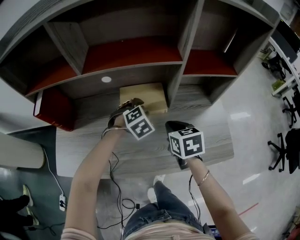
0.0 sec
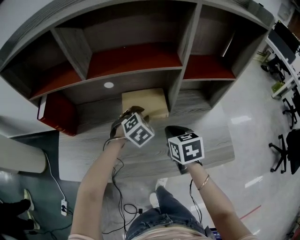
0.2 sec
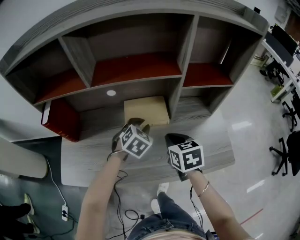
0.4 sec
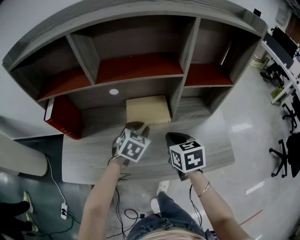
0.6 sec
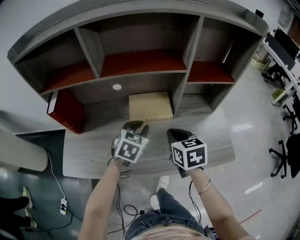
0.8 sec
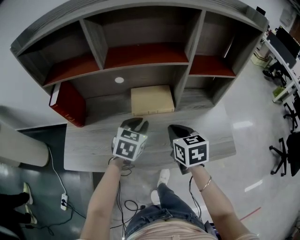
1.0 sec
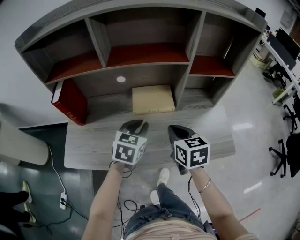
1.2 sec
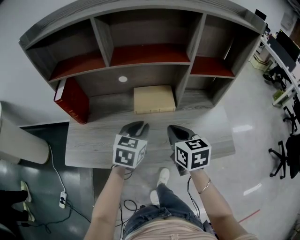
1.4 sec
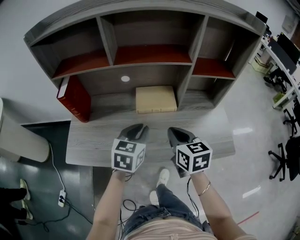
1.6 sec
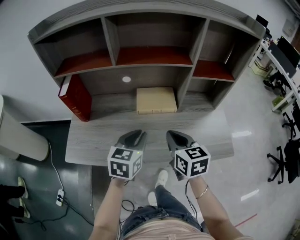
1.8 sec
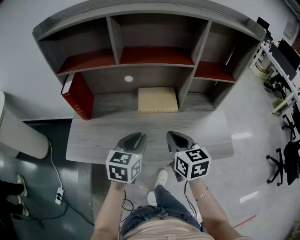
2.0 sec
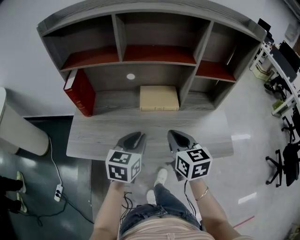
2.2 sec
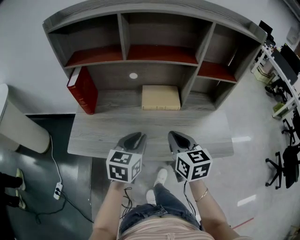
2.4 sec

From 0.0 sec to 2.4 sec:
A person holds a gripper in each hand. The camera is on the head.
From 0.0 sec to 1.2 sec: The left gripper is displaced backward, upward and to the left by some 15 cm, twists some 40 degrees counterclockwise, seen from behind, and closes, while the right gripper is displaced backward and upward by some 10 cm.
From 1.2 sec to 2.4 sec: Both grippers travel together backward, approximately 10 cm.

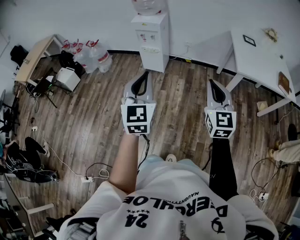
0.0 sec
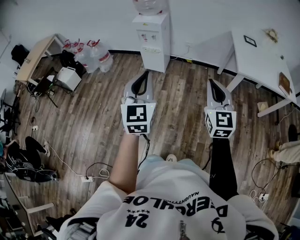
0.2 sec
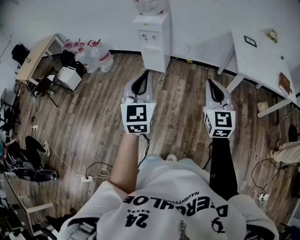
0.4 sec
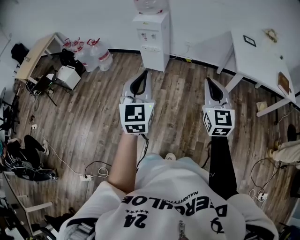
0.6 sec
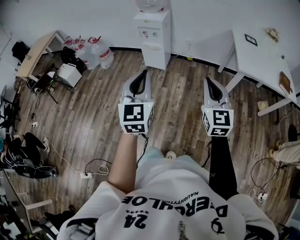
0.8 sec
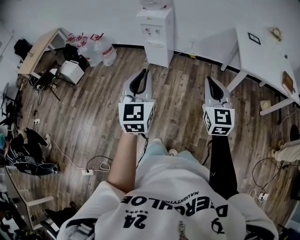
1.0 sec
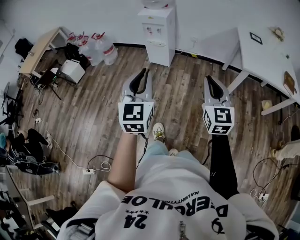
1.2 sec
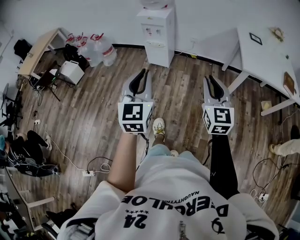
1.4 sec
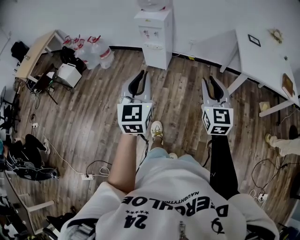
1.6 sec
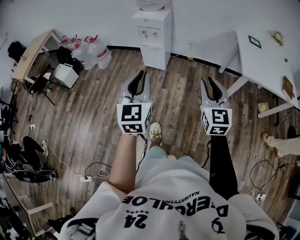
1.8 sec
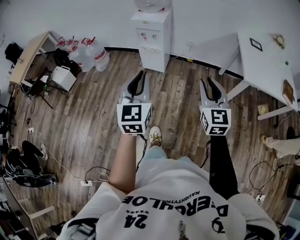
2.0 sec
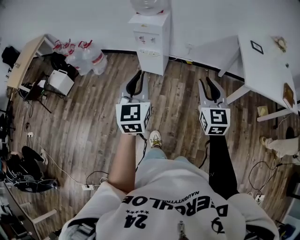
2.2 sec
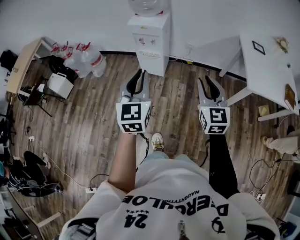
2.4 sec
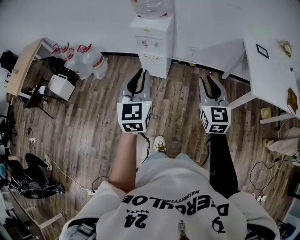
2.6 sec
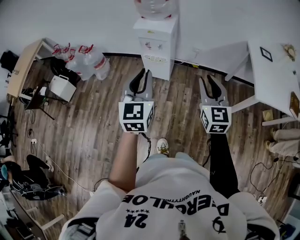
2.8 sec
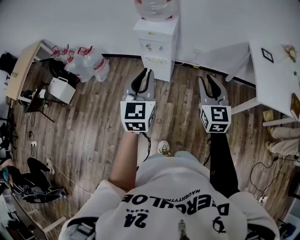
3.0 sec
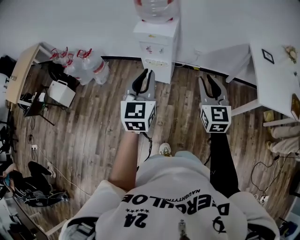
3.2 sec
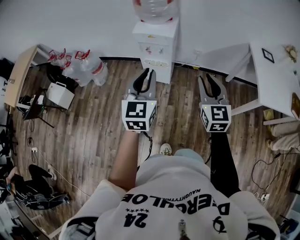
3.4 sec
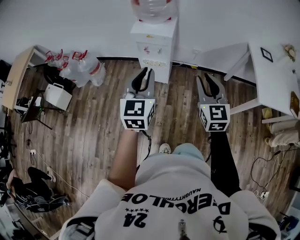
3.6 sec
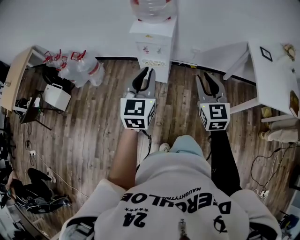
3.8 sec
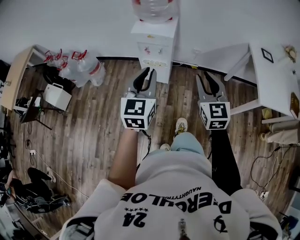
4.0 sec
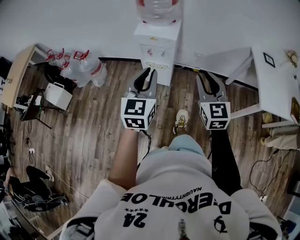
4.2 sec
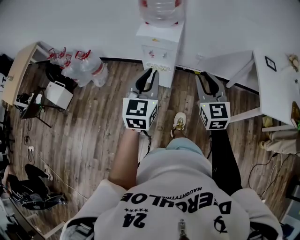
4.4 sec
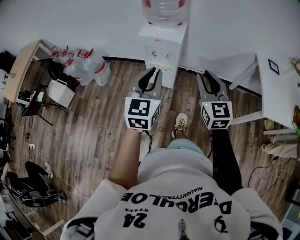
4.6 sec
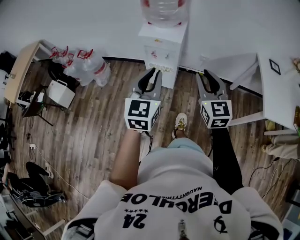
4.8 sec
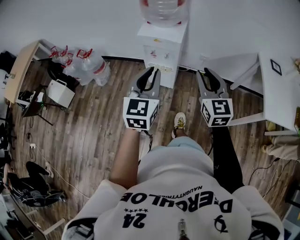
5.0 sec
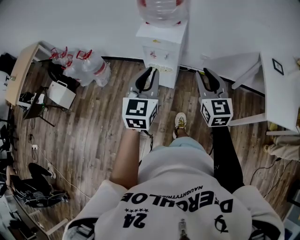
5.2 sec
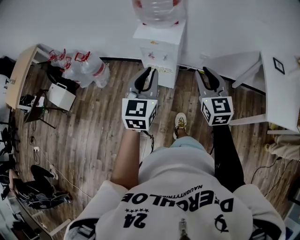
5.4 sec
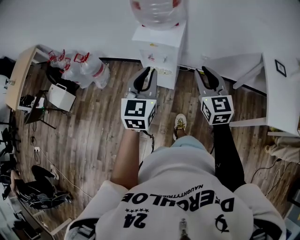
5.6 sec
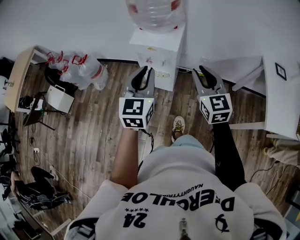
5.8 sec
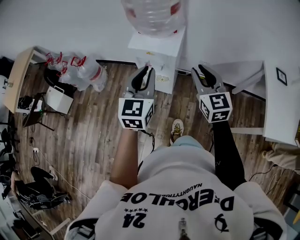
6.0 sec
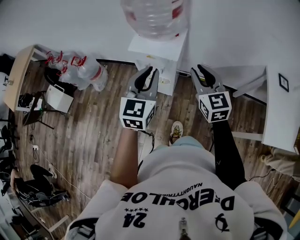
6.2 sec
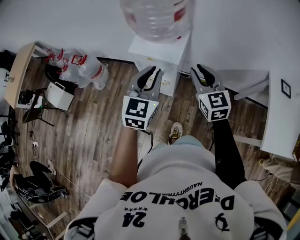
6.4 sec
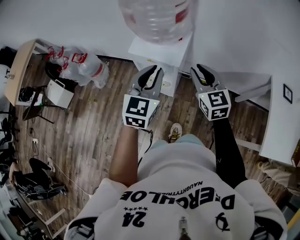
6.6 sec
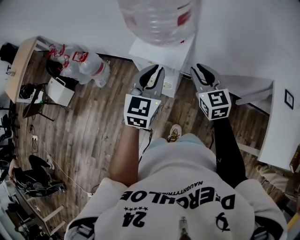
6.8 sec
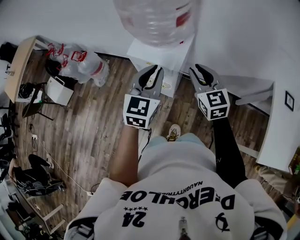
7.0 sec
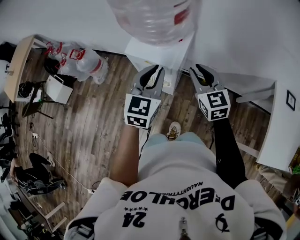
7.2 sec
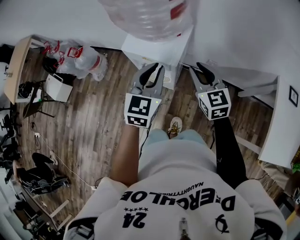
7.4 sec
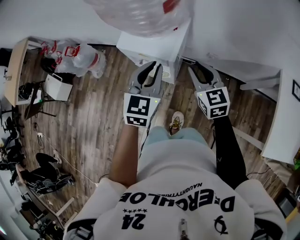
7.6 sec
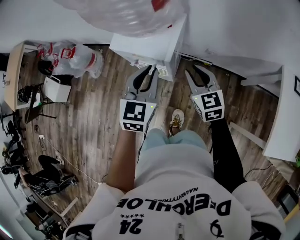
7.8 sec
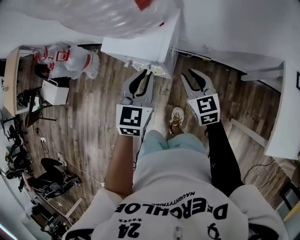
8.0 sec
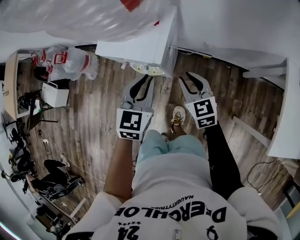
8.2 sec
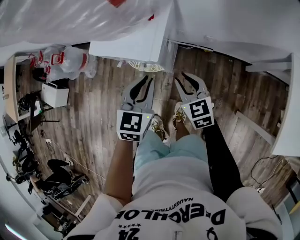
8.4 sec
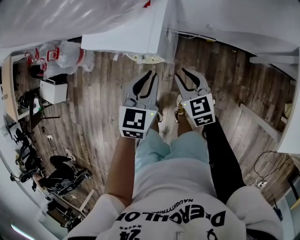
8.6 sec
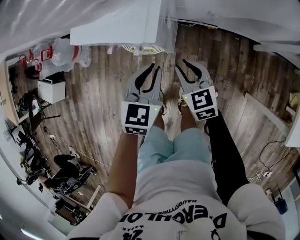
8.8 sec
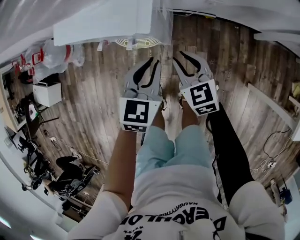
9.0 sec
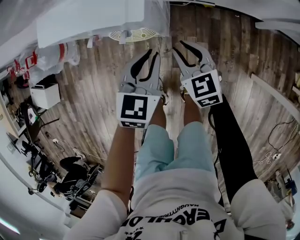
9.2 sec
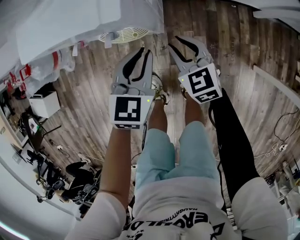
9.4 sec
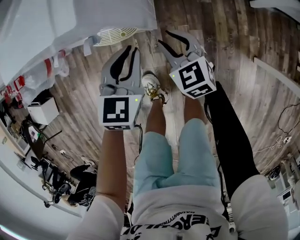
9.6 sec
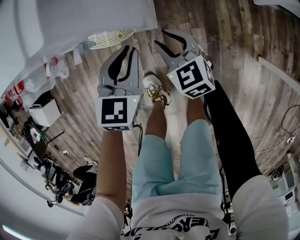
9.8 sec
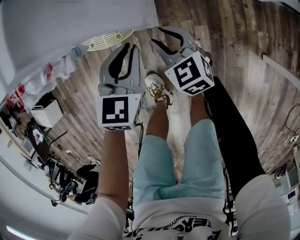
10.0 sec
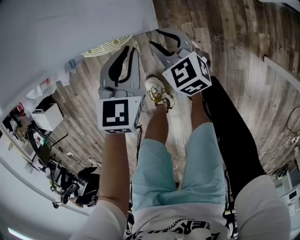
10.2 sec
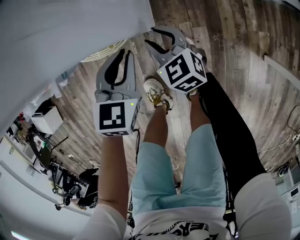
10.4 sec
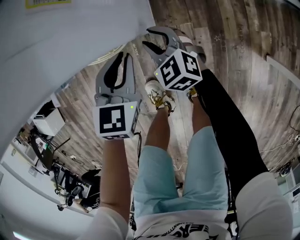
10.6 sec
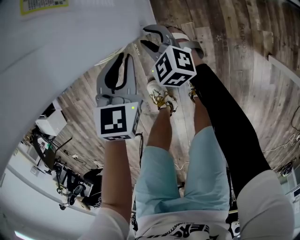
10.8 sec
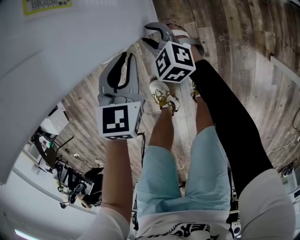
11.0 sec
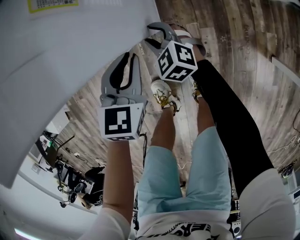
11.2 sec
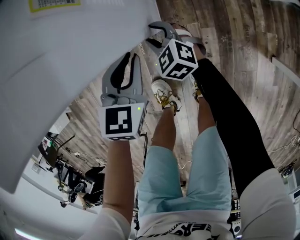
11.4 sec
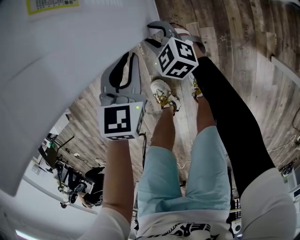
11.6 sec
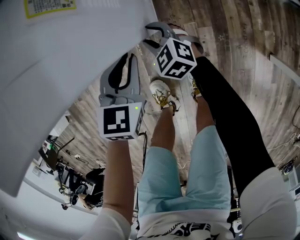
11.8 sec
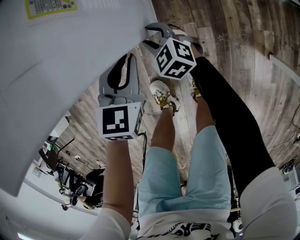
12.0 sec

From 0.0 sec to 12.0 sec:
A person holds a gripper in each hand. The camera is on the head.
From 0.0 sec to 1.6 sec: The right gripper moves about 5 cm.
From 1.6 sec to 3.0 sec: Both grippers move forward, about 30 cm.
From 3.0 sec to 4.4 sec: The left gripper heads forward, covering approximately 10 cm. The right gripper heads forward and to the left, covering about 10 cm.
From 4.4 sec to 6.0 sec: The two grippers go approximately 20 cm forward.
From 6.0 sec to 7.6 sec: The left gripper heads forward, downward and to the right, covering roughly 15 cm. Meanwhile the right gripper goes about 20 cm forward and downward.
From 7.6 sec to 9.0 sec: Both grippers travel together downward, some 25 cm. The left gripper turns by some 20 degrees.
From 9.0 sec to 10.4 sec: Both grippers move downward, approximately 25 cm.
From 10.4 sec to 12.0 sec: The right gripper heads downward, covering approximately 5 cm.

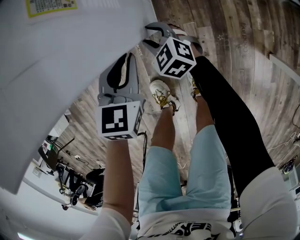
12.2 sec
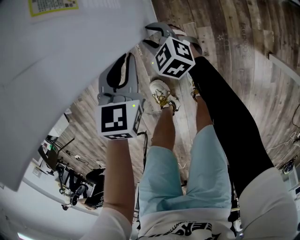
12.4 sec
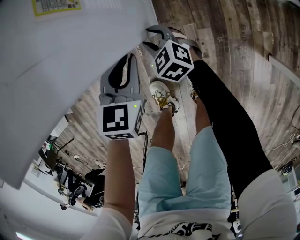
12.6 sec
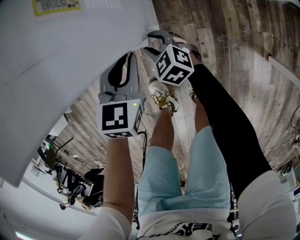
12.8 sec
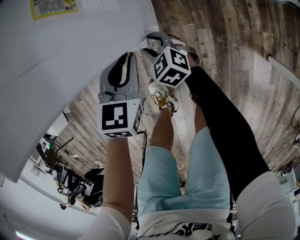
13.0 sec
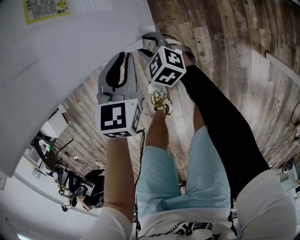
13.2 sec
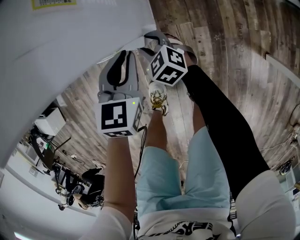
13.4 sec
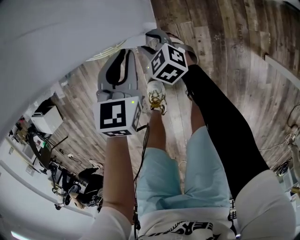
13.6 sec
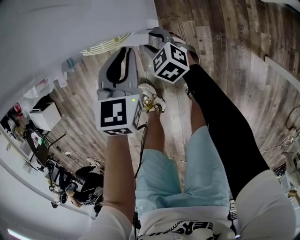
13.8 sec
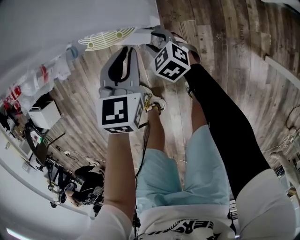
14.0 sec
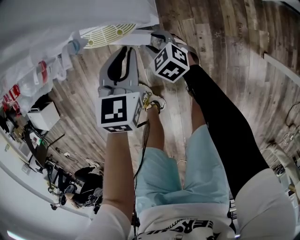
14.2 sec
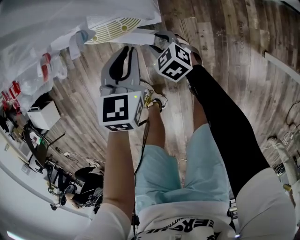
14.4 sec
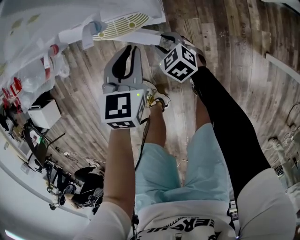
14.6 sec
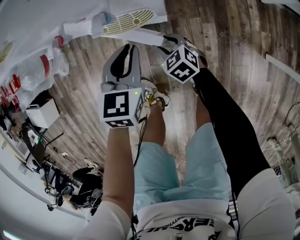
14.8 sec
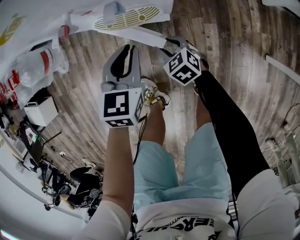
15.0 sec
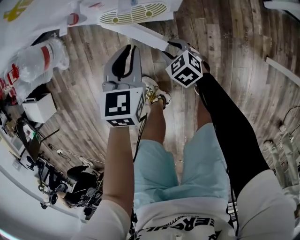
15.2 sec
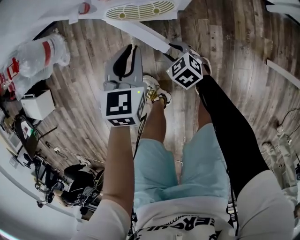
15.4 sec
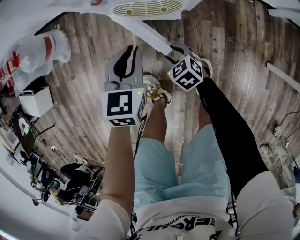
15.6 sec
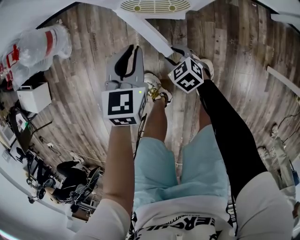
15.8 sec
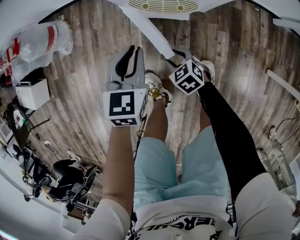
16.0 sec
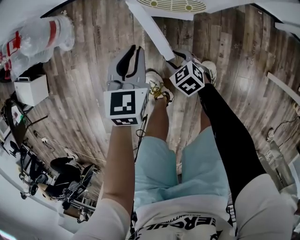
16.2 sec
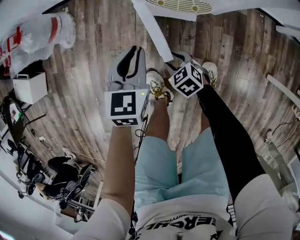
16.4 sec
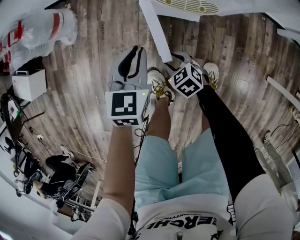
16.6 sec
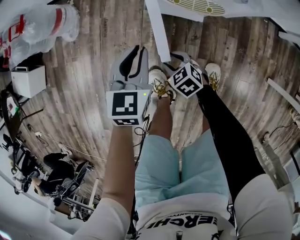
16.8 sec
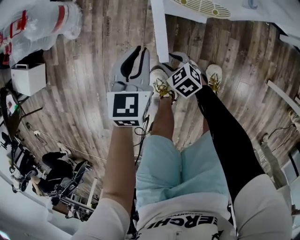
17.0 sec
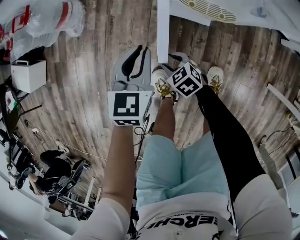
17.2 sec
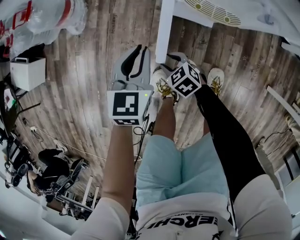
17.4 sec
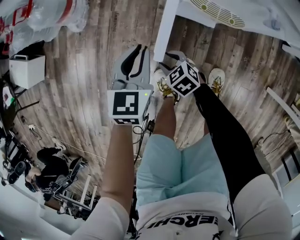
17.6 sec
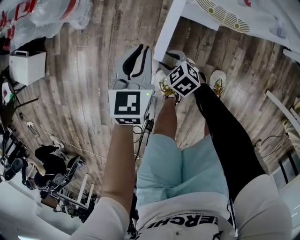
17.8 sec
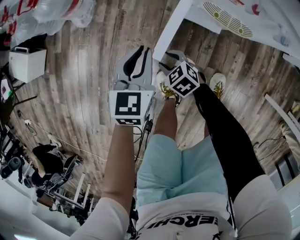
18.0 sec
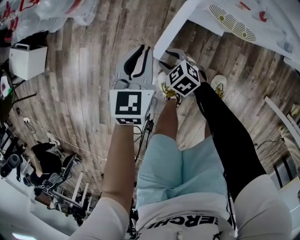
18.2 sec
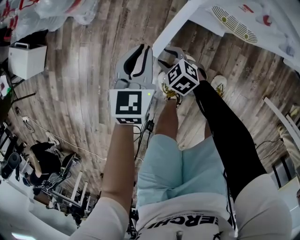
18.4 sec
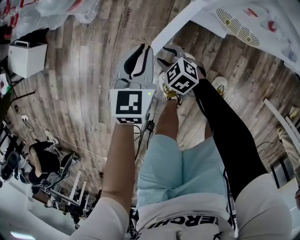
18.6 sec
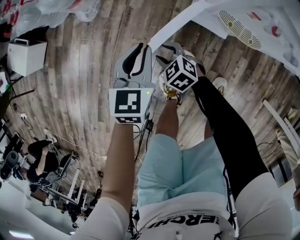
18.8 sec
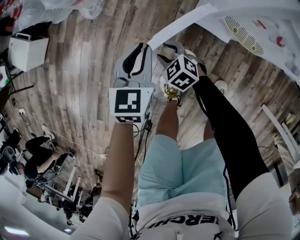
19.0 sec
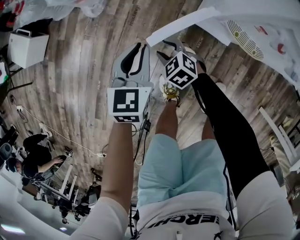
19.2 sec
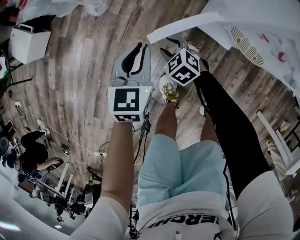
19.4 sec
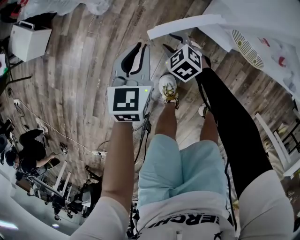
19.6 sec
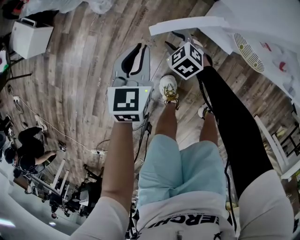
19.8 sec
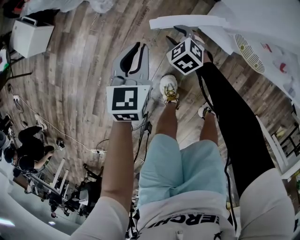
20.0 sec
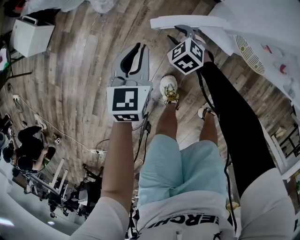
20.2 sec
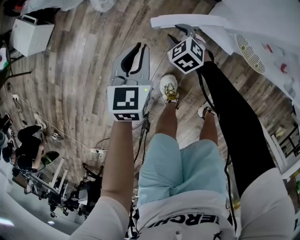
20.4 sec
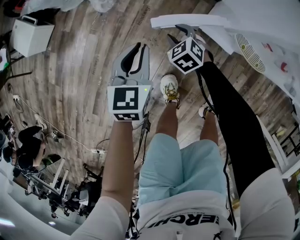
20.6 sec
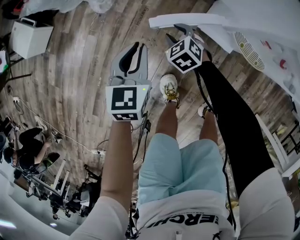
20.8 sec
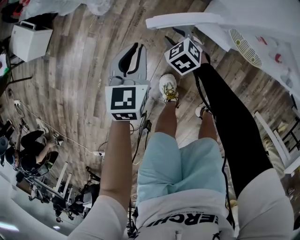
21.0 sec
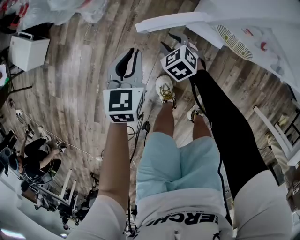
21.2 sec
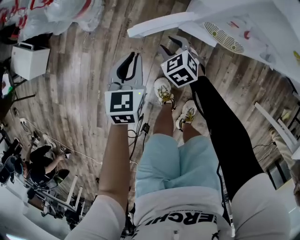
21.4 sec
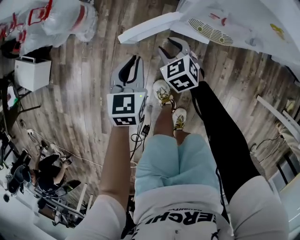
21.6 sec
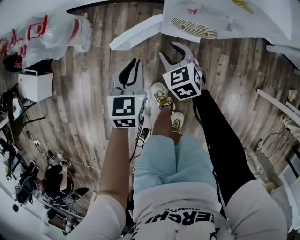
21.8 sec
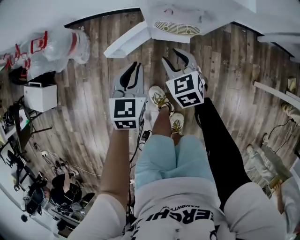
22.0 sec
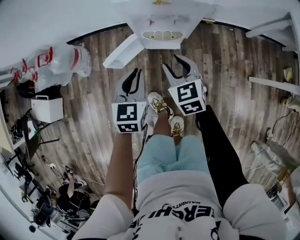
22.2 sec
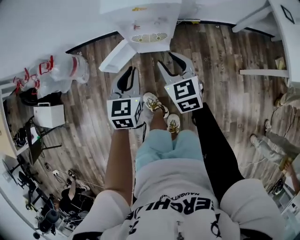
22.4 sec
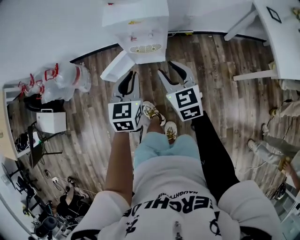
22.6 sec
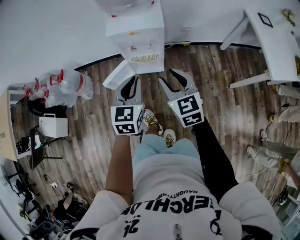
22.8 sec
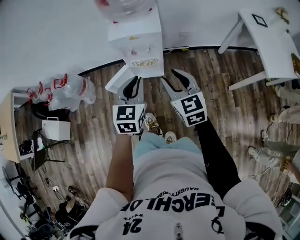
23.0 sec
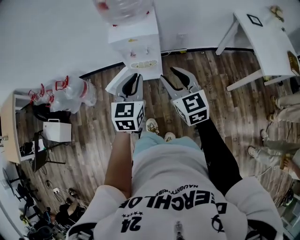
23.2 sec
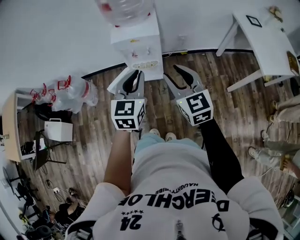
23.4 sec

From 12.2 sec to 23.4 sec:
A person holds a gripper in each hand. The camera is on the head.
From 12.2 sec to 13.8 sec: The right gripper shifts some 5 cm backward.
From 13.8 sec to 15.4 sec: The right gripper travels to the left and backward by some 15 cm, while the left gripper is displaced to the left by approximately 15 cm.
From 15.4 sec to 17.0 sec: Both grippers travel together to the left, roughly 15 cm.
From 17.0 sec to 18.6 sec: The two grippers go approximately 15 cm to the left and forward.
From 18.6 sec to 20.2 sec: The right gripper moves forward, roughly 15 cm. The left gripper is displaced to the left and forward by about 10 cm.
From 20.2 sec to 21.8 sec: The right gripper heads upward, to the right and backward, covering some 25 cm, and swivels about 40 degrees, while the left gripper heads to the right, upward and backward, covering some 20 cm, and changes its angle by about 20 degrees.
From 21.8 sec to 23.4 sec: The two grippers go approximately 50 cm upward, to the right and backward. The right gripper angles its fingers upward, by some 30 degrees, while the left gripper rotates about 30 degrees.
